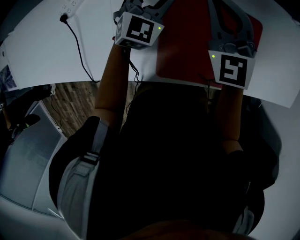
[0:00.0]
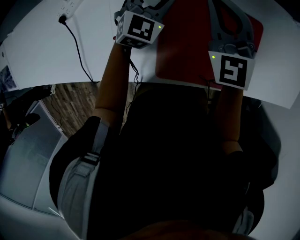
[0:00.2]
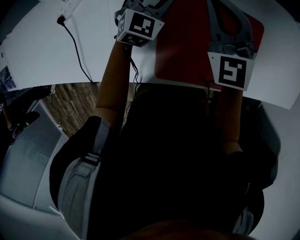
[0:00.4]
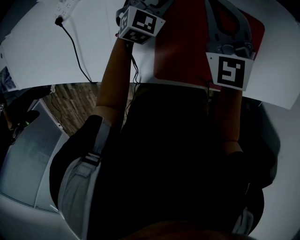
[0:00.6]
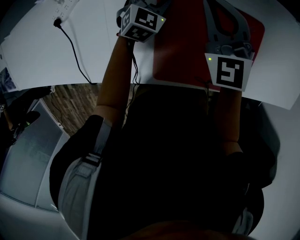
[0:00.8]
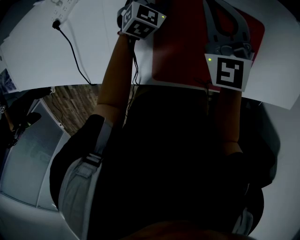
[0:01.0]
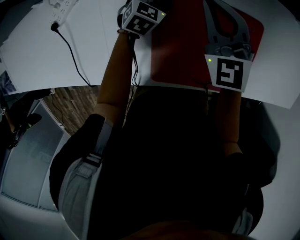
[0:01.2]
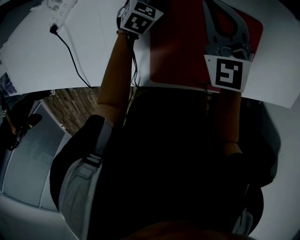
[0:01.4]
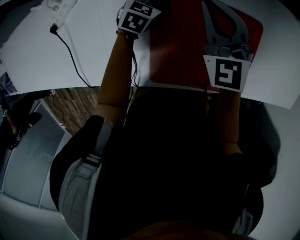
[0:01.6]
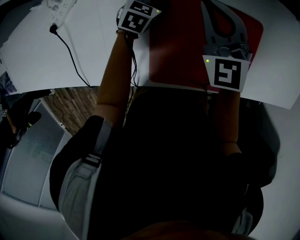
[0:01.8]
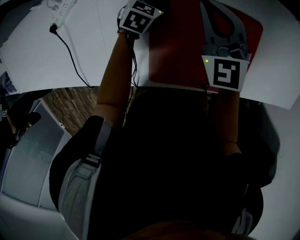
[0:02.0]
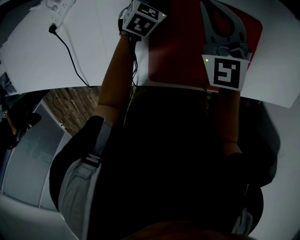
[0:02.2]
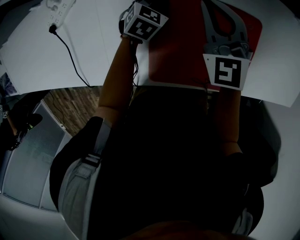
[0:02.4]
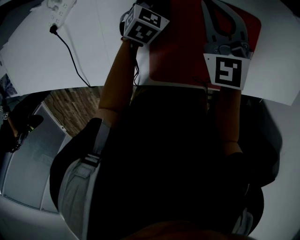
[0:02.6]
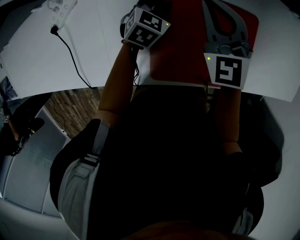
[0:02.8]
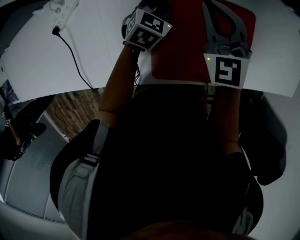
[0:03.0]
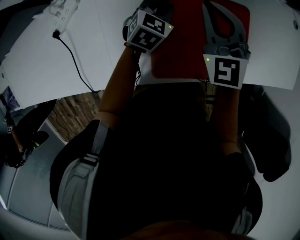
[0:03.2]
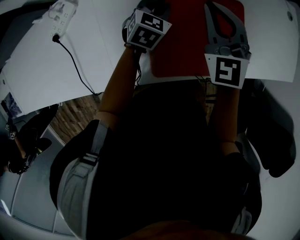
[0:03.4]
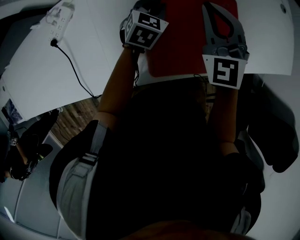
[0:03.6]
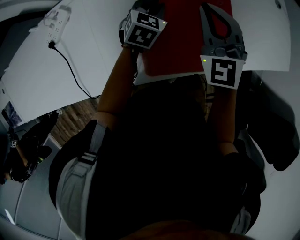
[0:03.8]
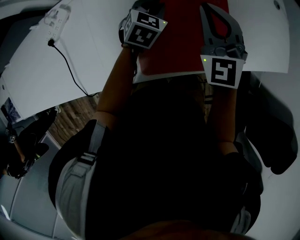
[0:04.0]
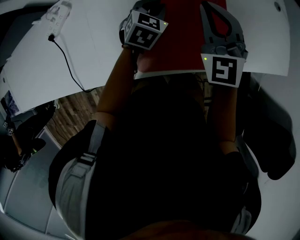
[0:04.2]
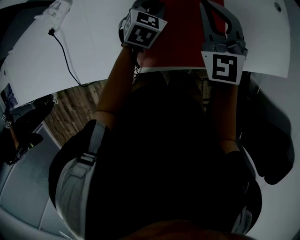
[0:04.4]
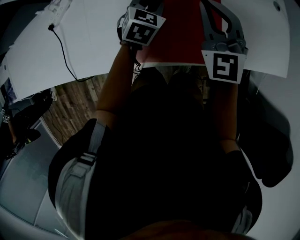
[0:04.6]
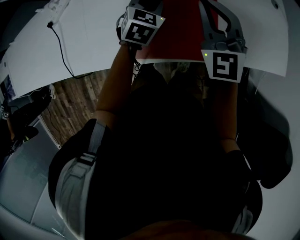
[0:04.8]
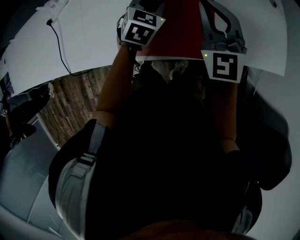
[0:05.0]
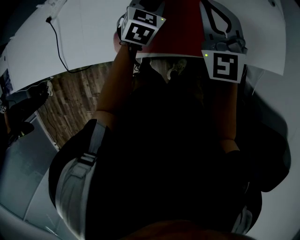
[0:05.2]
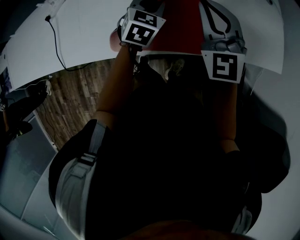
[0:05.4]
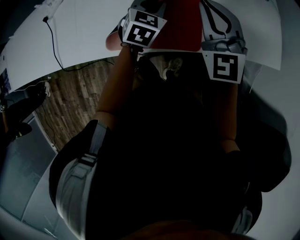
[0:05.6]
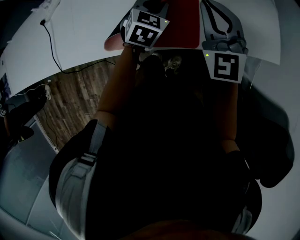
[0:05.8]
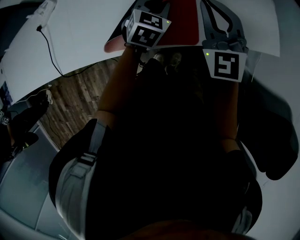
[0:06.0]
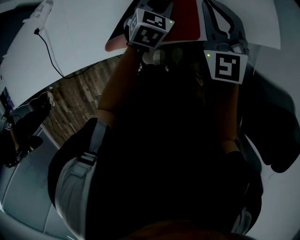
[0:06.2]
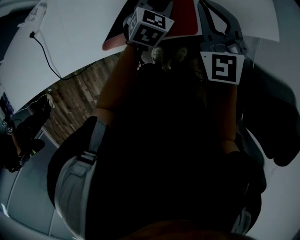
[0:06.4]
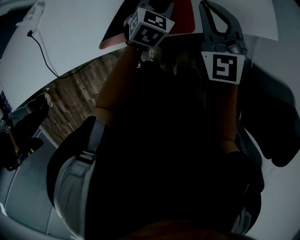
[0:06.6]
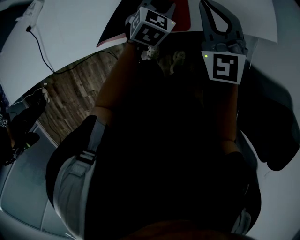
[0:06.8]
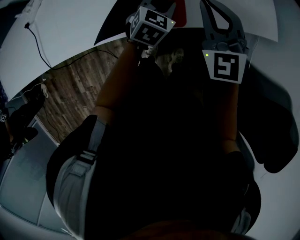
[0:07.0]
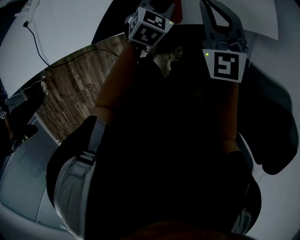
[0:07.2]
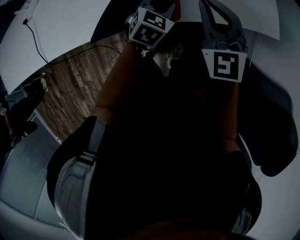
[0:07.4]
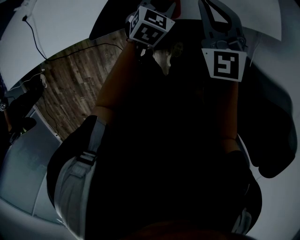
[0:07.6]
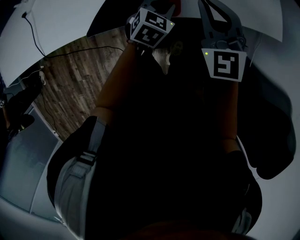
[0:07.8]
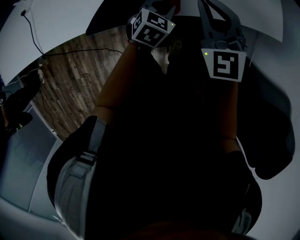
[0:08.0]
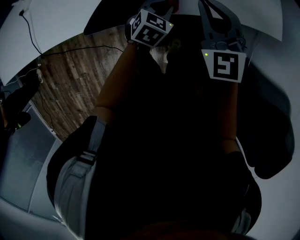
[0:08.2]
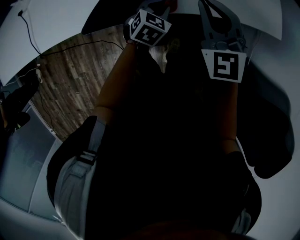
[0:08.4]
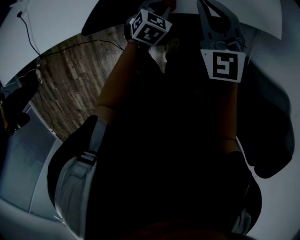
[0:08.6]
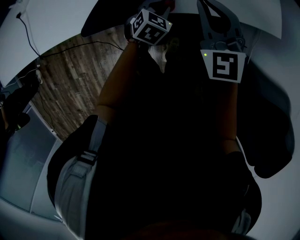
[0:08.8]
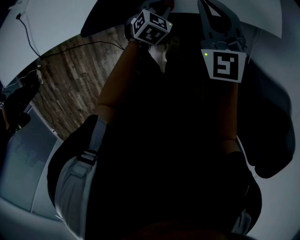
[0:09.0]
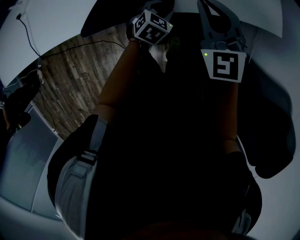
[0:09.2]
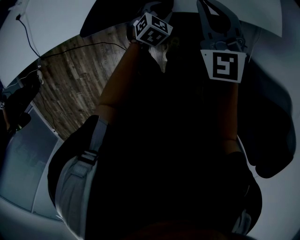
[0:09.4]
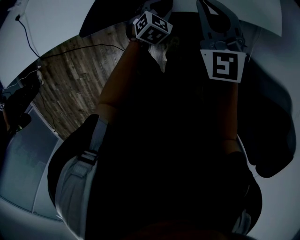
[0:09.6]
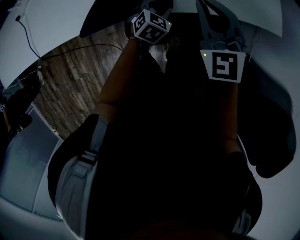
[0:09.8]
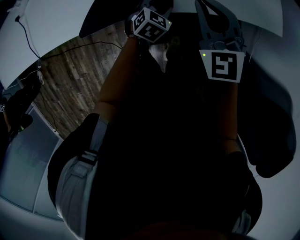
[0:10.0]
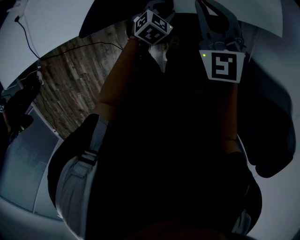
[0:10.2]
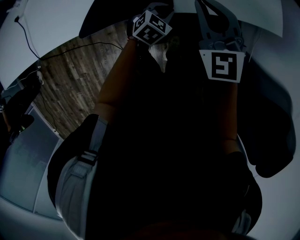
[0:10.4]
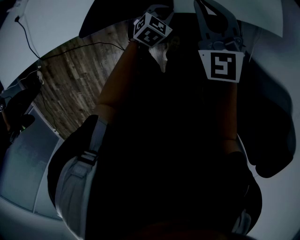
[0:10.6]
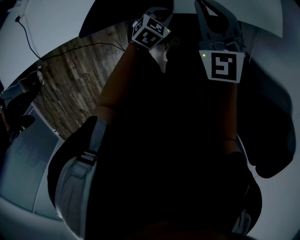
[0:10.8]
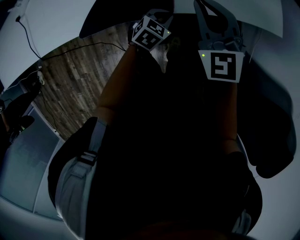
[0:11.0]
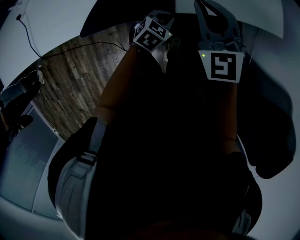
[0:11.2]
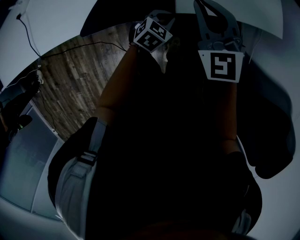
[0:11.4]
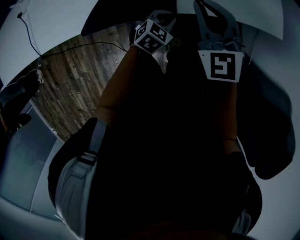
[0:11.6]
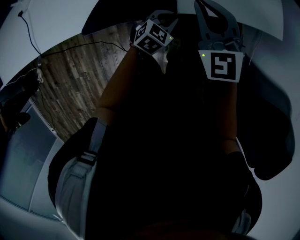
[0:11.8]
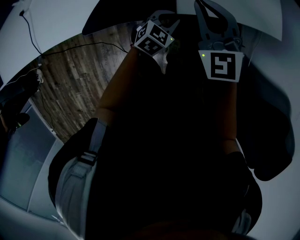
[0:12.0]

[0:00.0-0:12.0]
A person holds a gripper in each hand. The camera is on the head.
0:00.0 to 0:01.6: The left gripper heads downward, covering about 15 cm, and rotates approximately 30 degrees; the right gripper goes approximately 5 cm downward.
0:01.6 to 0:03.0: The left gripper is displaced upward and to the right by approximately 10 cm, and closes its fingers.
0:03.0 to 0:04.4: The left gripper goes approximately 10 cm to the right and upward. Meanwhile the right gripper travels to the right, backward and upward by some 15 cm.
0:04.4 to 0:06.0: Both grippers move to the right and backward, approximately 20 cm.
0:06.0 to 0:07.6: Both grippers move to the right, backward and downward, some 15 cm.
0:07.6 to 0:09.0: The left gripper heads downward, covering about 10 cm.
0:09.0 to 0:10.4: The grippers make only small movements.
0:10.4 to 0:12.0: The grippers make only small movements.

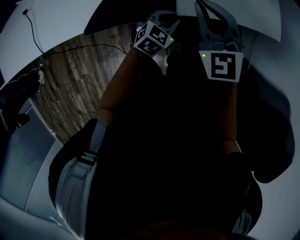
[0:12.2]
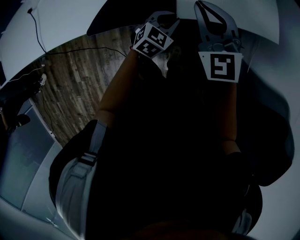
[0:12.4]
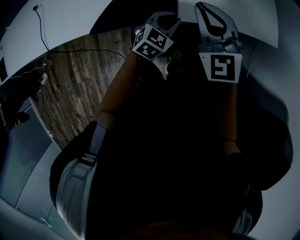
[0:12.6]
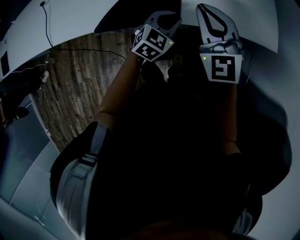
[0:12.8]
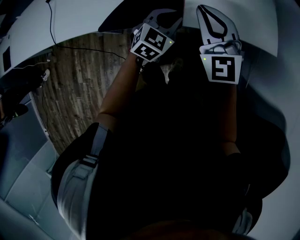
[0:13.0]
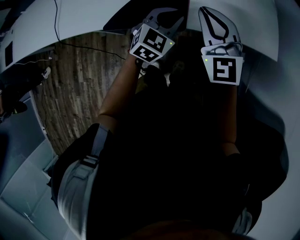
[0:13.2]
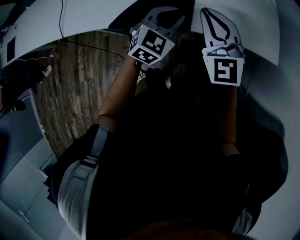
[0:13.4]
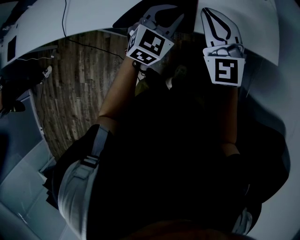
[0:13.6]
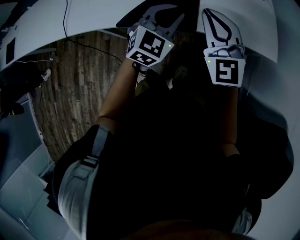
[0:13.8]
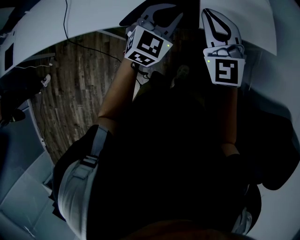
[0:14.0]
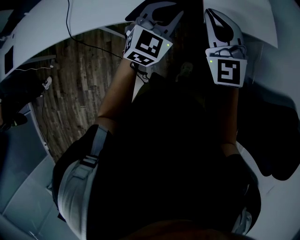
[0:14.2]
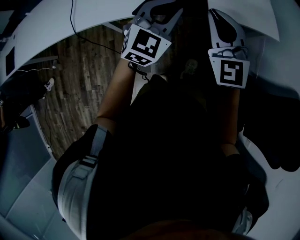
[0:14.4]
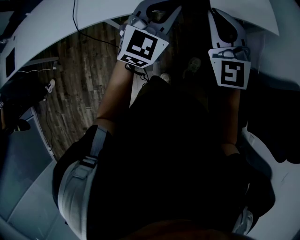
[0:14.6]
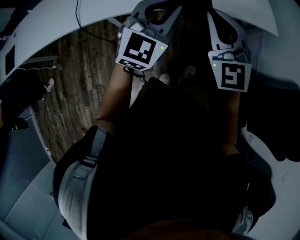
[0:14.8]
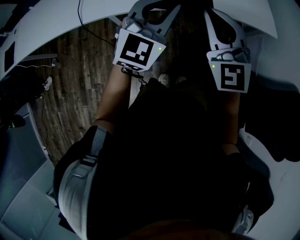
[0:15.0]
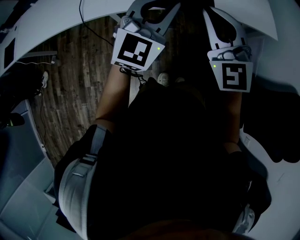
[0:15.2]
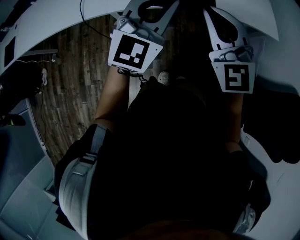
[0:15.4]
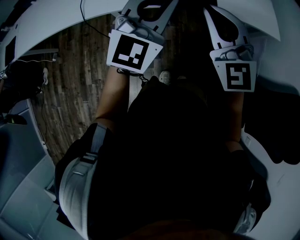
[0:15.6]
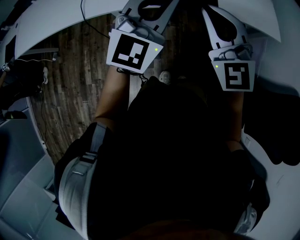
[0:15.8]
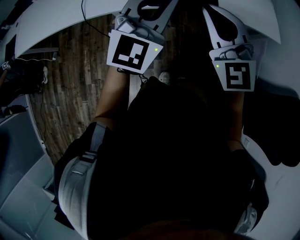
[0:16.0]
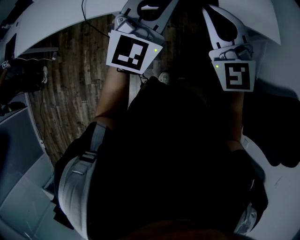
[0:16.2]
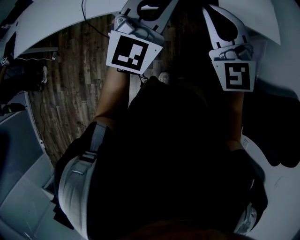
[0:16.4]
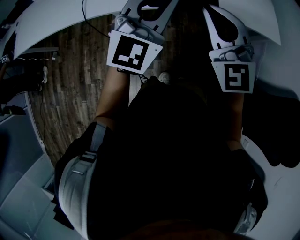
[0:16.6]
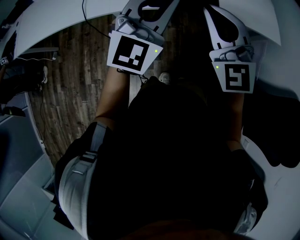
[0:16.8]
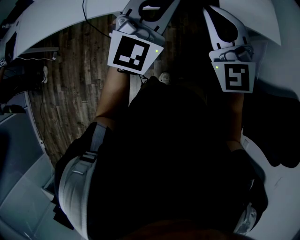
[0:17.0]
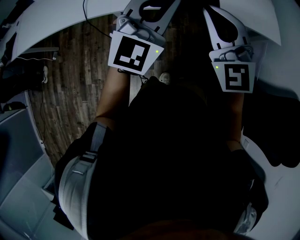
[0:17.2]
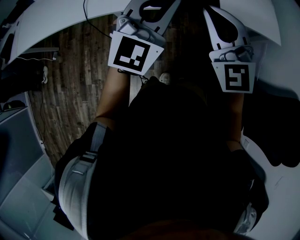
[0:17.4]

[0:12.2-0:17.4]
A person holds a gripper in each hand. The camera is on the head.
0:12.2 to 0:14.0: The left gripper travels upward and to the left by some 25 cm, and changes its angle by roughly 30 degrees. Meanwhile the right gripper is displaced upward, backward and to the left by some 20 cm.
0:14.0 to 0:15.6: The right gripper shifts roughly 20 cm backward and to the left. The left gripper moves backward, upward and to the left, about 25 cm.
0:15.6 to 0:17.4: Neither gripper changes place.

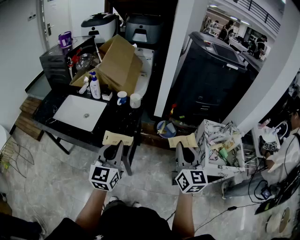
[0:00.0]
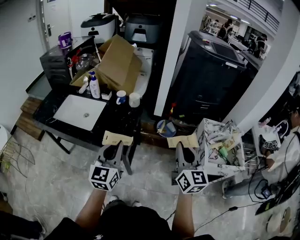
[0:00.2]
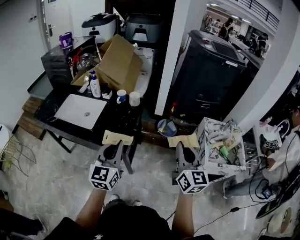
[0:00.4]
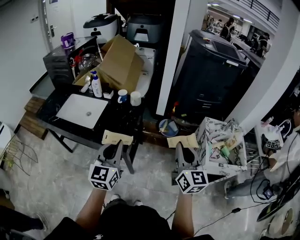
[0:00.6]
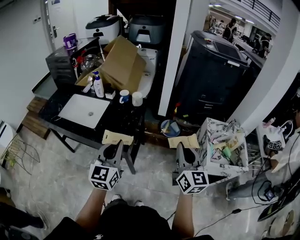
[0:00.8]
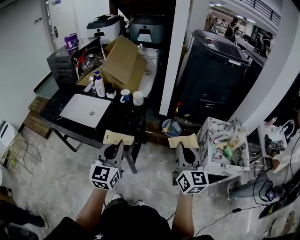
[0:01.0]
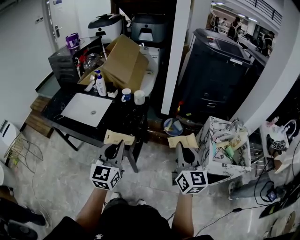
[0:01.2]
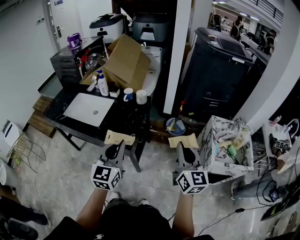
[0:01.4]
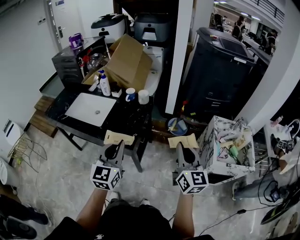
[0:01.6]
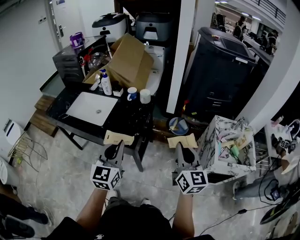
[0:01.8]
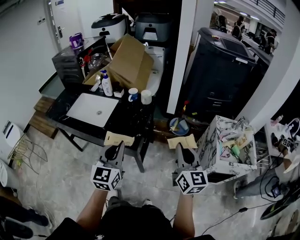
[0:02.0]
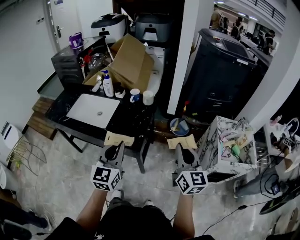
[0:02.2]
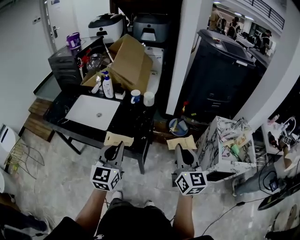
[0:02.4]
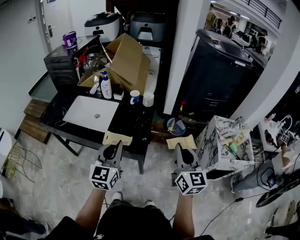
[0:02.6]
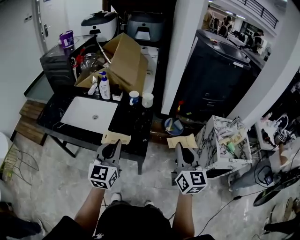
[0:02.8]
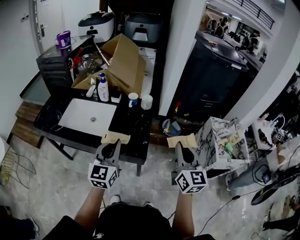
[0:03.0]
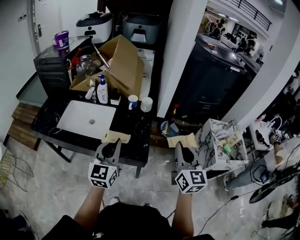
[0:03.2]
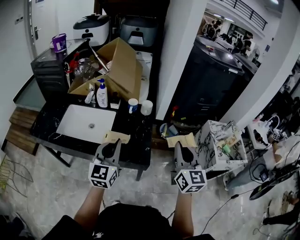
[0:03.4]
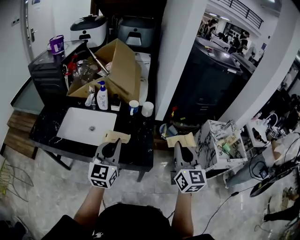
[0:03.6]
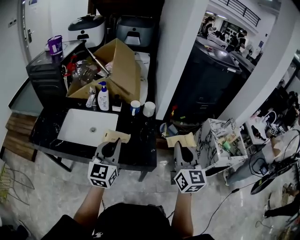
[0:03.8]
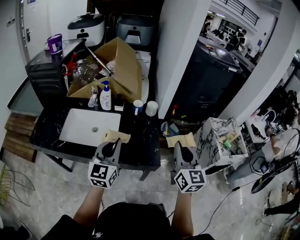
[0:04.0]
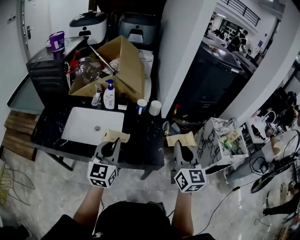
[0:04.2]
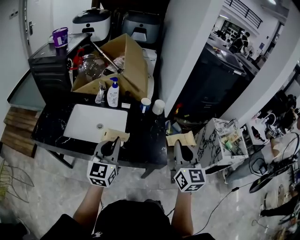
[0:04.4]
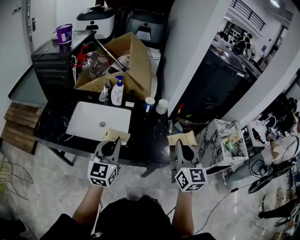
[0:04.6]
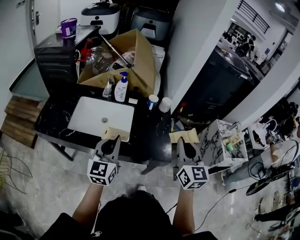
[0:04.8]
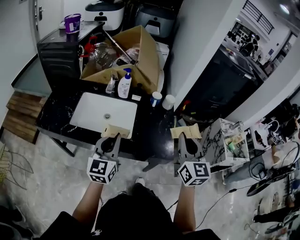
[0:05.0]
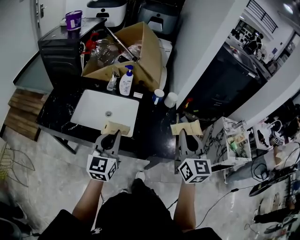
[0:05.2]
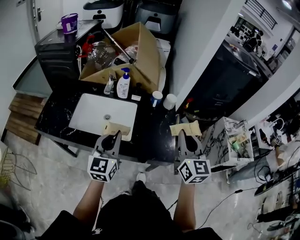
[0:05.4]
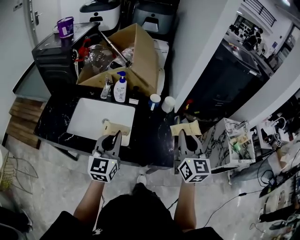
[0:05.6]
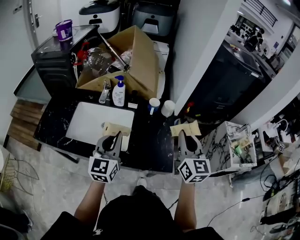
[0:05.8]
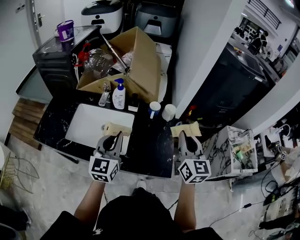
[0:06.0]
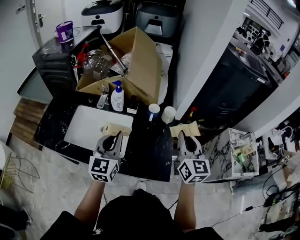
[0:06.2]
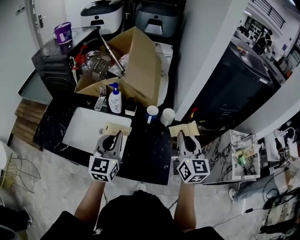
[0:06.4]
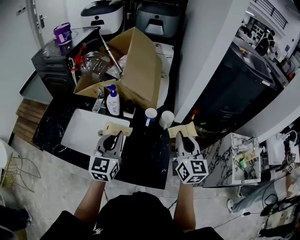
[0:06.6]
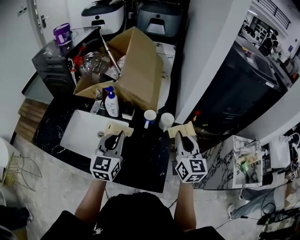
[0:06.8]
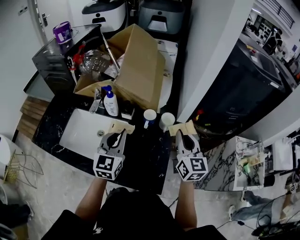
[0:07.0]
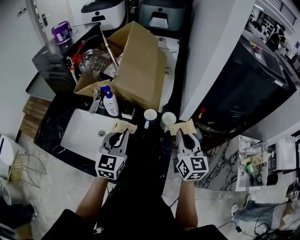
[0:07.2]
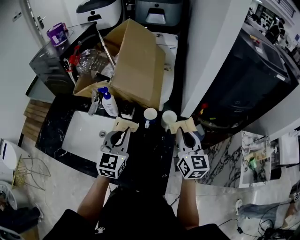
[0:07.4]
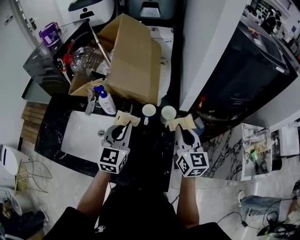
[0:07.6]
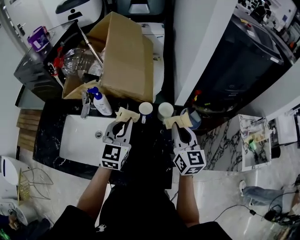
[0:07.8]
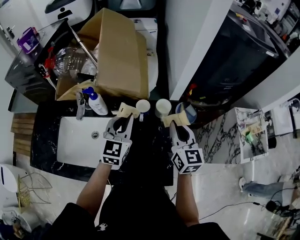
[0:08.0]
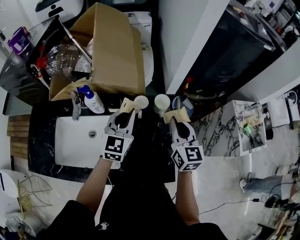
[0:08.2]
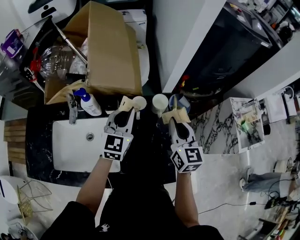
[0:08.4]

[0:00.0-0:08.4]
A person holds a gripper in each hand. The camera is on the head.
0:00.0 to 0:01.4: There are only small adjustments of the grippers.
0:01.4 to 0:02.8: The two grippers go about 15 cm to the left.
0:02.8 to 0:04.2: The left gripper heads to the left and forward, covering approximately 20 cm. Meanwhile the right gripper travels to the left by roughly 15 cm.
0:04.2 to 0:05.6: The right gripper is displaced forward by some 10 cm. Meanwhile the left gripper travels to the left by roughly 5 cm.
0:05.6 to 0:07.0: The two grippers go roughly 20 cm forward and to the right.
0:07.0 to 0:08.4: The left gripper travels forward by about 15 cm, and swivels some 20 degrees. The right gripper goes approximately 5 cm downward.
